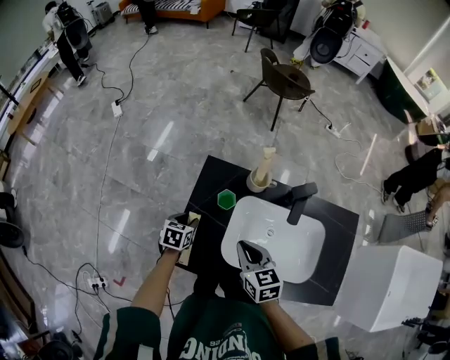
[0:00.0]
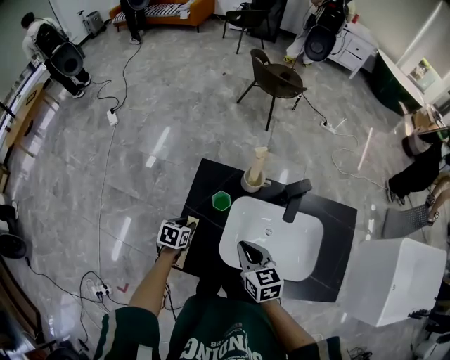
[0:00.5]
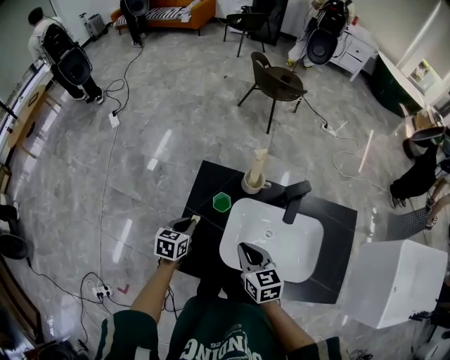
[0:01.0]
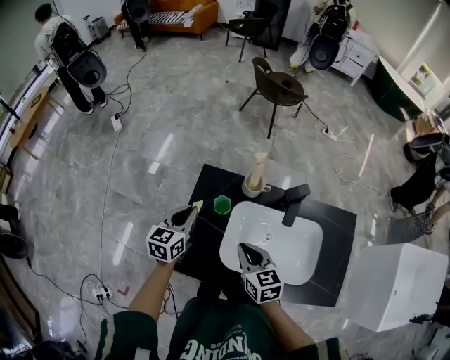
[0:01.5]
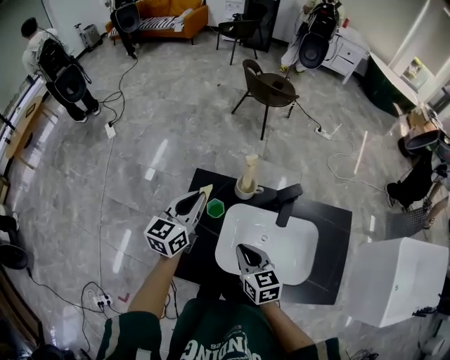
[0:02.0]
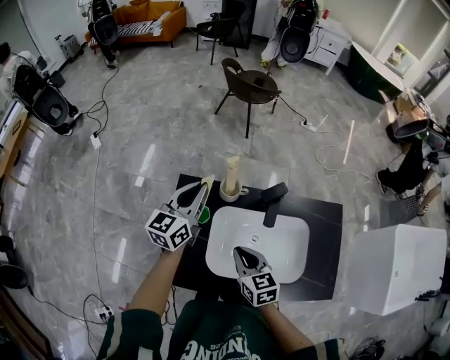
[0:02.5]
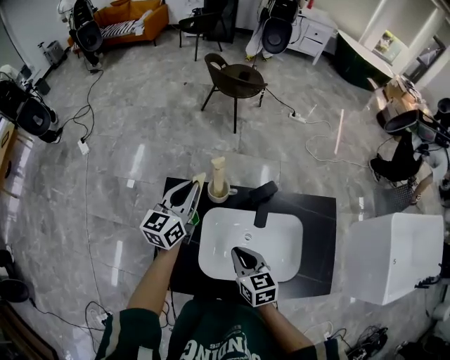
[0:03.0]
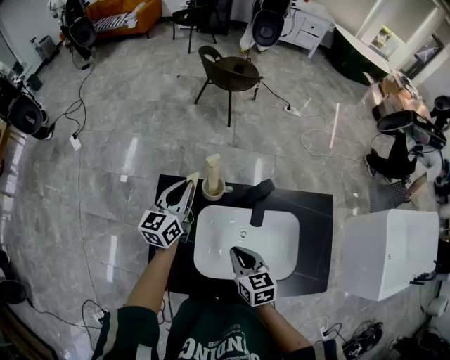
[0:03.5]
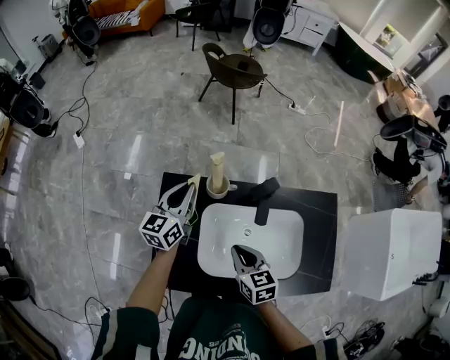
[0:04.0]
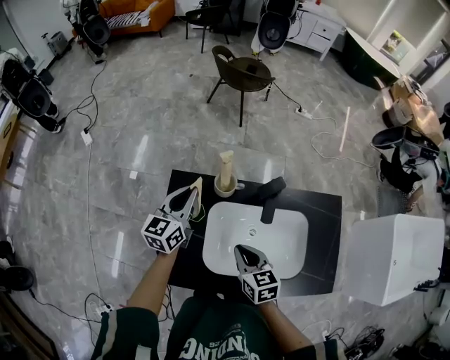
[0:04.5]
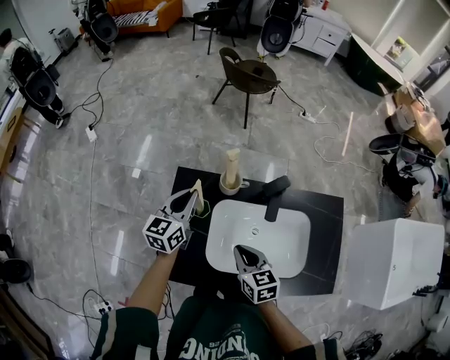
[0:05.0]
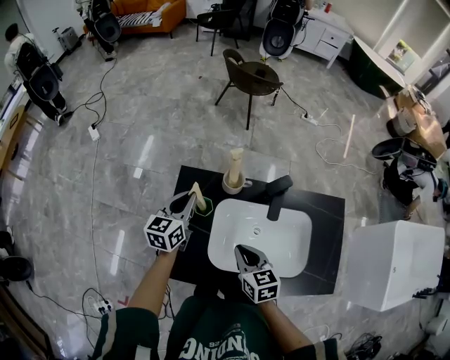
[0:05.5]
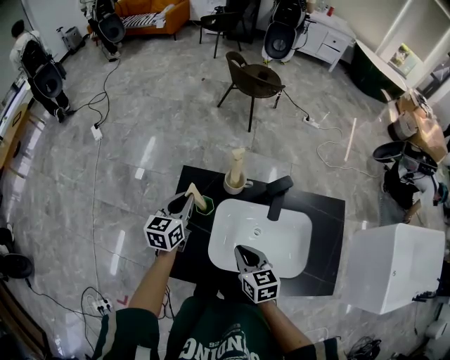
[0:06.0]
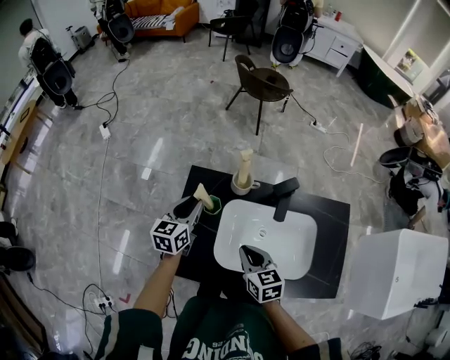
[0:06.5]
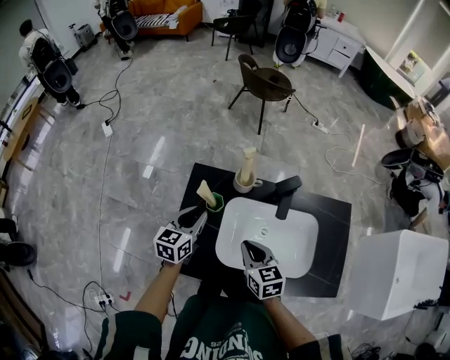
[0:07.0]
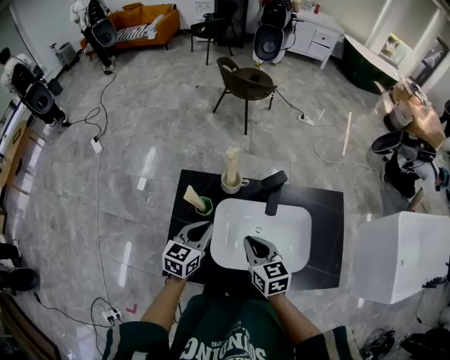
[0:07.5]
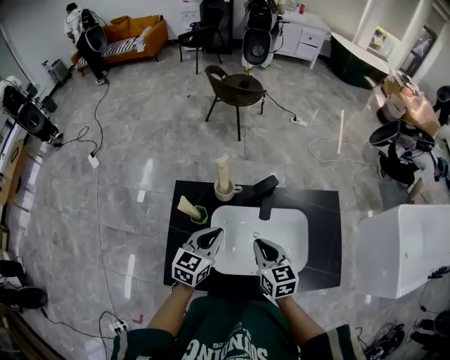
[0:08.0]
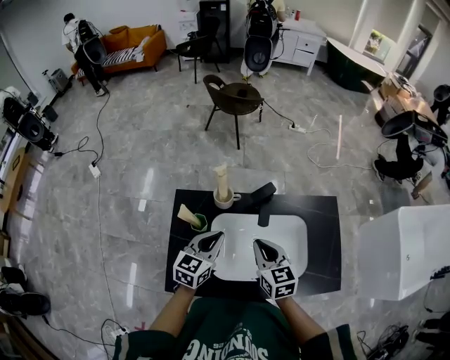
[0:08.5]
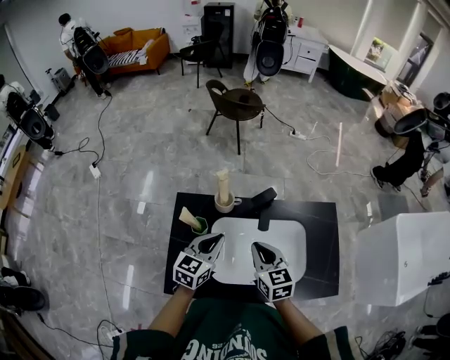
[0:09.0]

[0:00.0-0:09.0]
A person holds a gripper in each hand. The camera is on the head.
0:00.0 to 0:02.0: The left gripper heads upward, covering roughly 25 cm, points its fingers roughly 40 degrees further upward, and closes its fingers.
0:02.0 to 0:04.5: The right gripper shifts by approximately 5 cm.
0:04.5 to 0:07.0: The left gripper shifts roughly 10 cm backward and downward.
0:07.0 to 0:09.0: The two grippers go roughly 10 cm to the right and upward. The left gripper closes its fingers.

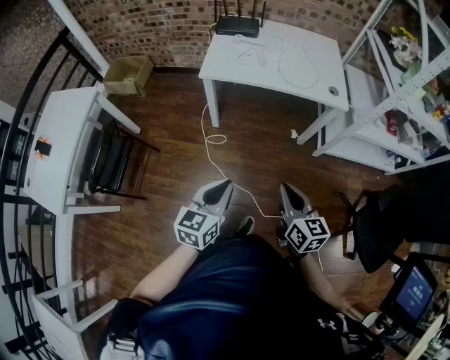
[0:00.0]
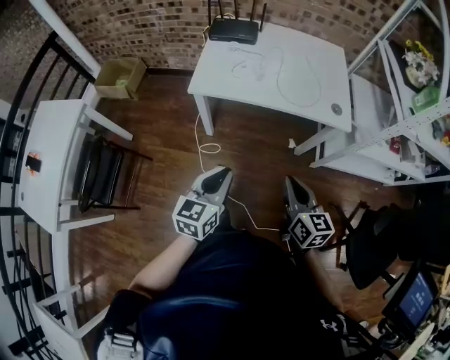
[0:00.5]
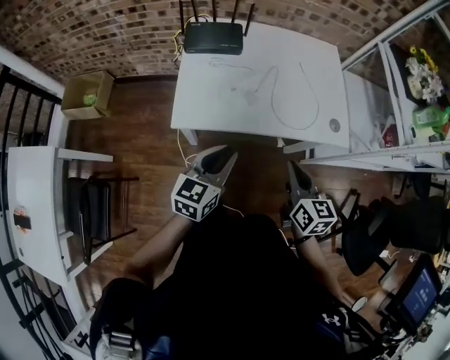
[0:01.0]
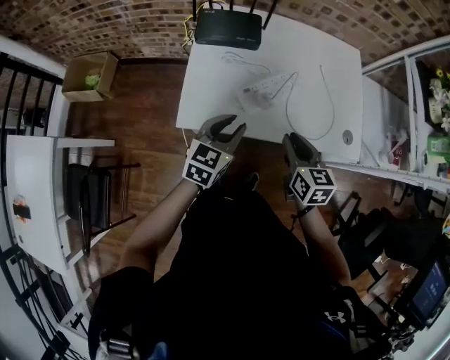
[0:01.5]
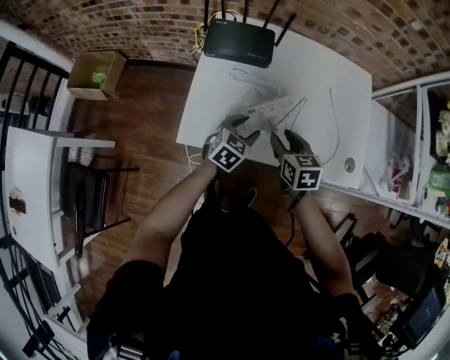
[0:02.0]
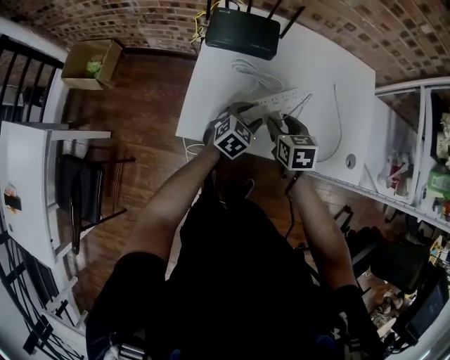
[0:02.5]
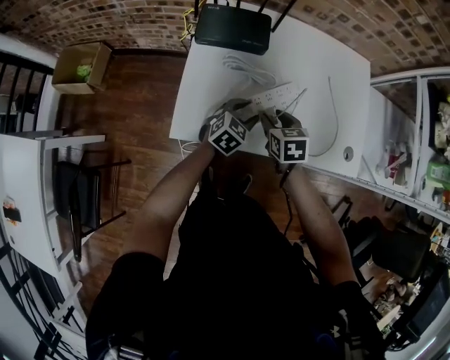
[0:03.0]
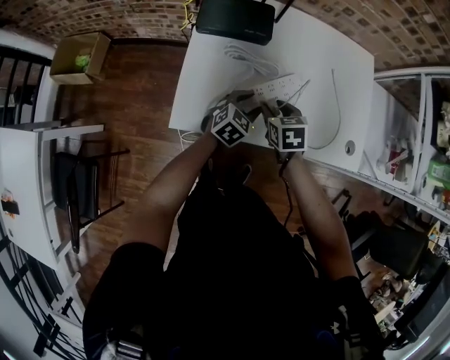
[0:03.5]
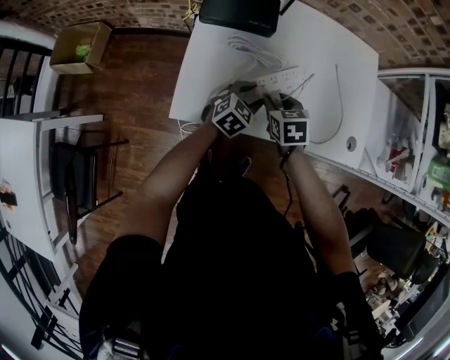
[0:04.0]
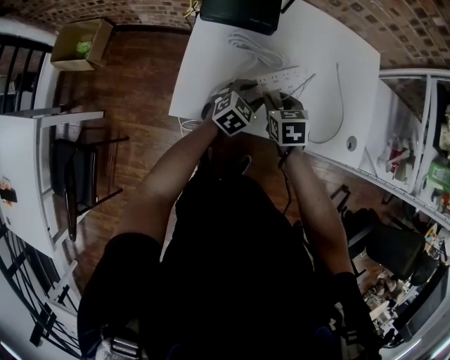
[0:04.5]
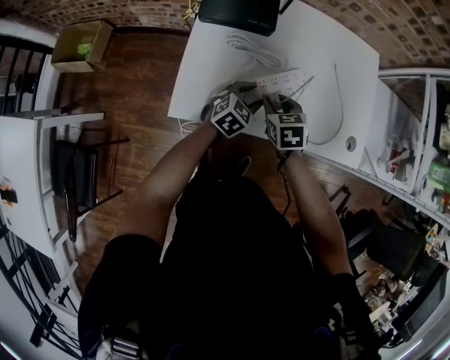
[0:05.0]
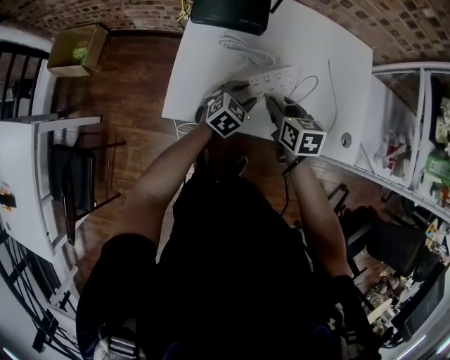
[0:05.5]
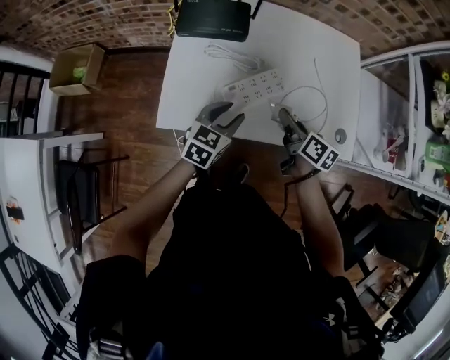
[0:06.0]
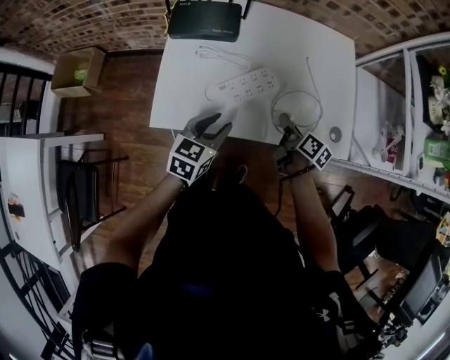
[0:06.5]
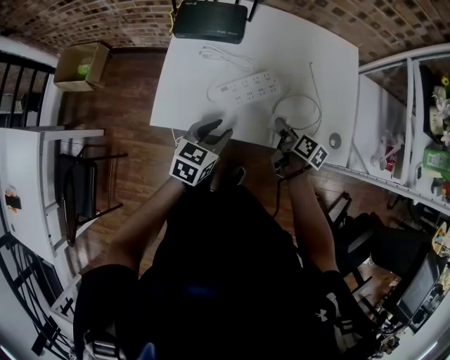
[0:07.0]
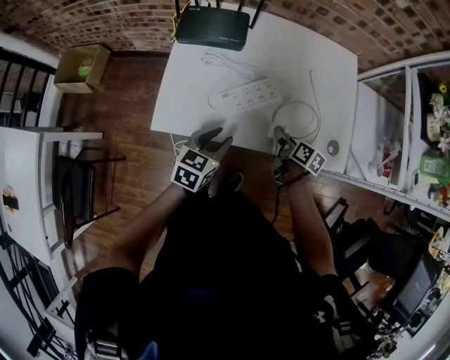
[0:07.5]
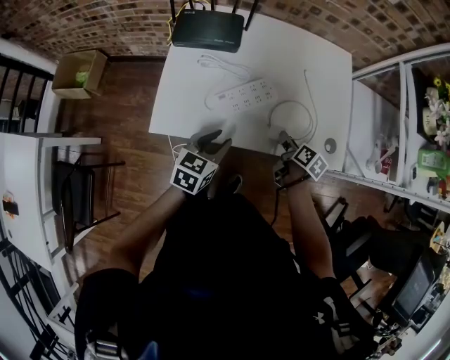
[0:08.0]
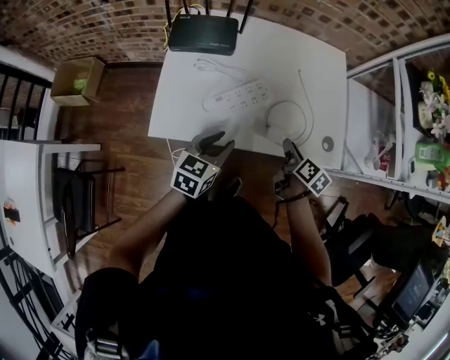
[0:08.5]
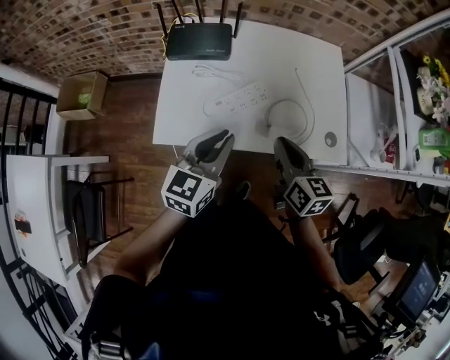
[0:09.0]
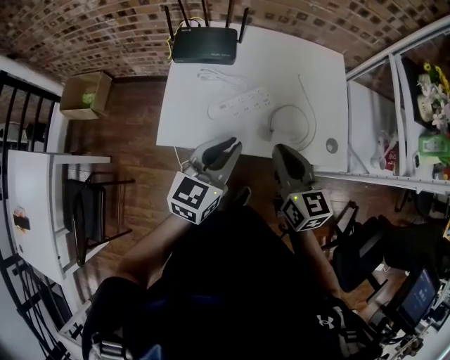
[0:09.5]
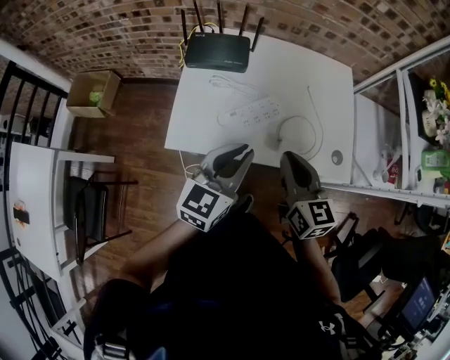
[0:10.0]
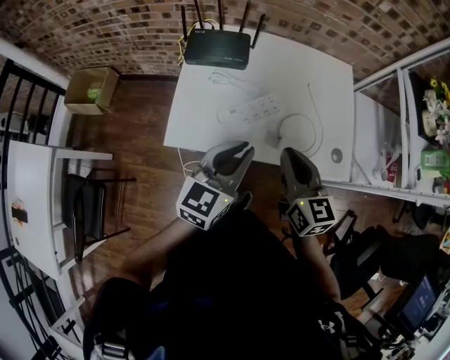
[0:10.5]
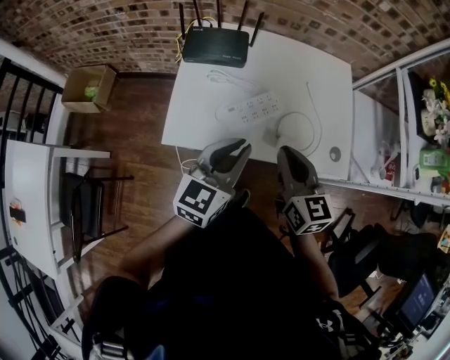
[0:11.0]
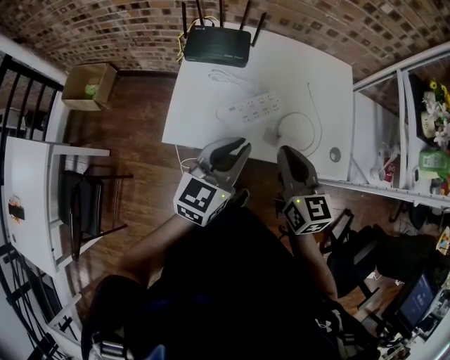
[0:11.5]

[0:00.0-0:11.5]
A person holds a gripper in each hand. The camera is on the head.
0:00.0 to 0:02.0: The pair of grippers is taken forward, about 60 cm. The right gripper swivels roughly 30 degrees, and opens up. The left gripper swivels roughly 30 degrees, and opens.
0:02.0 to 0:04.0: The right gripper goes approximately 5 cm downward.
0:04.0 to 0:06.0: The left gripper heads upward and backward, covering roughly 10 cm, while the right gripper heads to the right and upward, covering about 10 cm, and rotates around the line of its fingers by roughly 40 degrees, clockwise from behind.
0:06.0 to 0:07.5: The right gripper goes some 10 cm downward and to the right.
0:07.5 to 0:09.5: The right gripper goes about 25 cm upward, changes its angle by roughly 40 degrees, and closes up, while the left gripper heads upward, covering roughly 15 cm, rotates about 20 degrees, and closes its fingers.
0:09.5 to 0:11.5: The grippers move only a little.

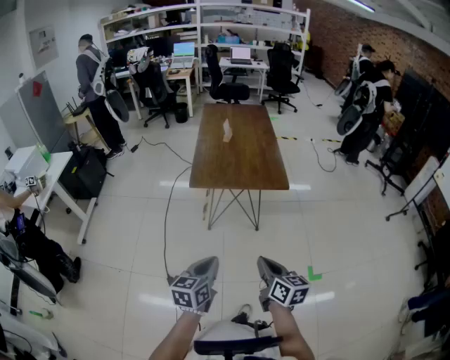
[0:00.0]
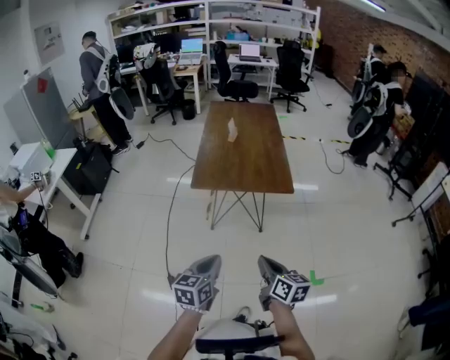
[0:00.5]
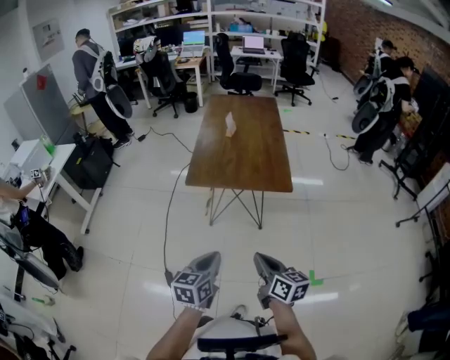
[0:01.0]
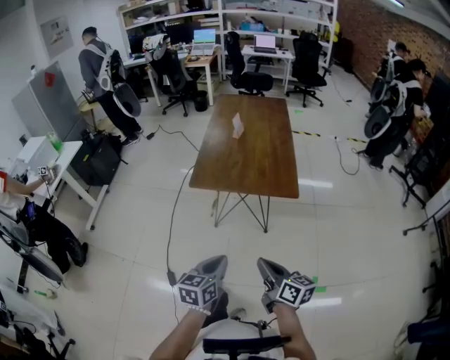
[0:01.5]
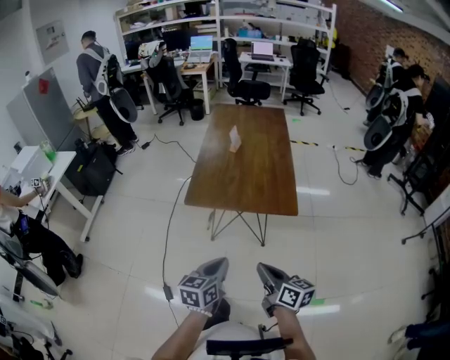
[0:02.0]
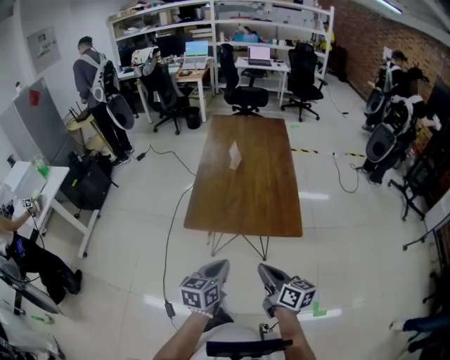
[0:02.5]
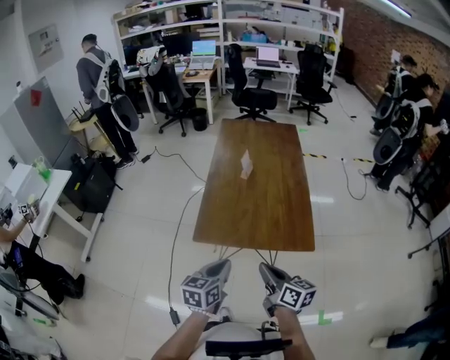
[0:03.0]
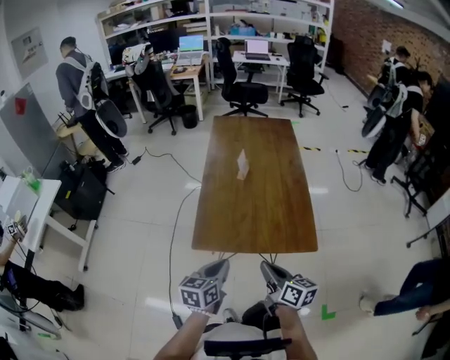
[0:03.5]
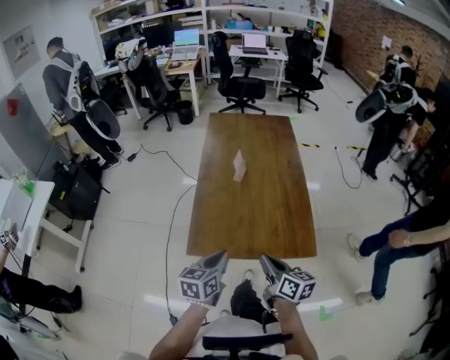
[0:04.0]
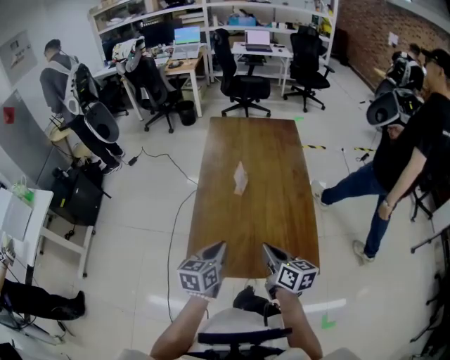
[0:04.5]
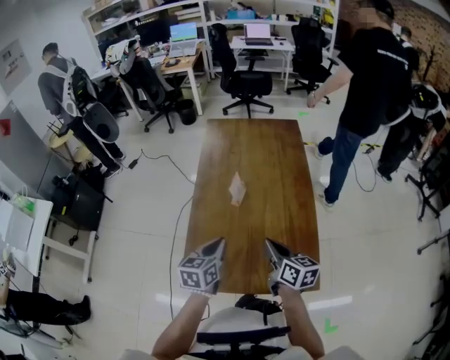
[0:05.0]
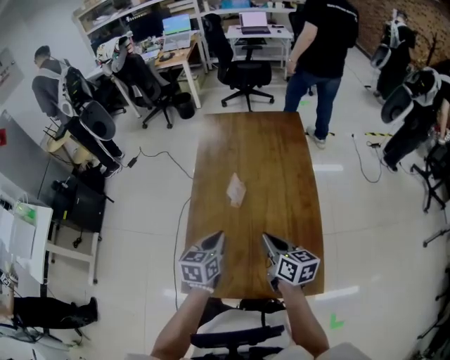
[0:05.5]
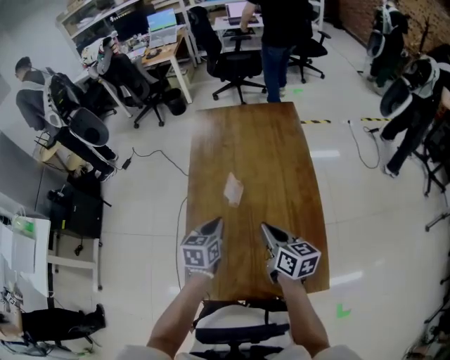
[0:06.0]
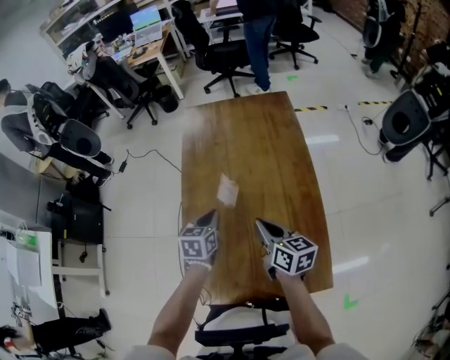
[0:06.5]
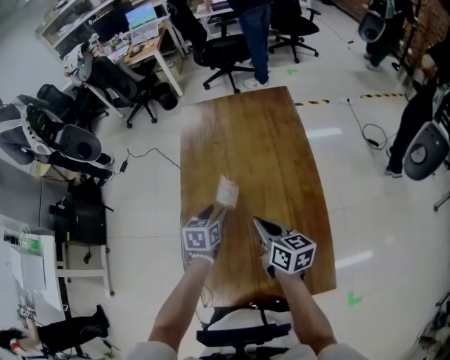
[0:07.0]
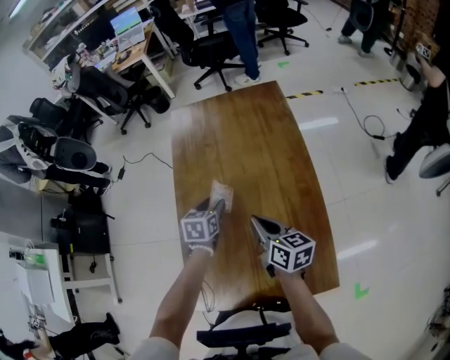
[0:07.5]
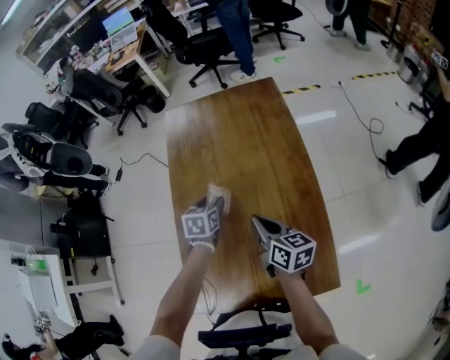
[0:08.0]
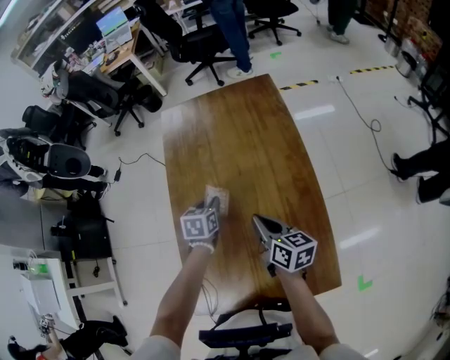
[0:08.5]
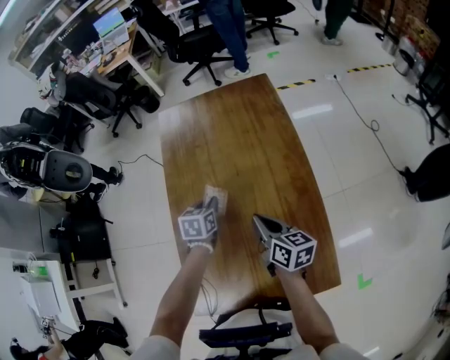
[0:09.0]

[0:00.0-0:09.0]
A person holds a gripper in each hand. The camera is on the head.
0:00.0 to 0:02.0: Both grippers move forward and to the right, roughly 20 cm.
0:02.0 to 0:04.5: Both grippers are carried forward, some 40 cm.
0:04.5 to 0:07.0: Both grippers travel together forward, approximately 25 cm. The left gripper swivels some 20 degrees, and opens.
0:07.0 to 0:09.0: The right gripper shifts by some 5 cm, while the left gripper travels forward by approximately 5 cm, and closes.
